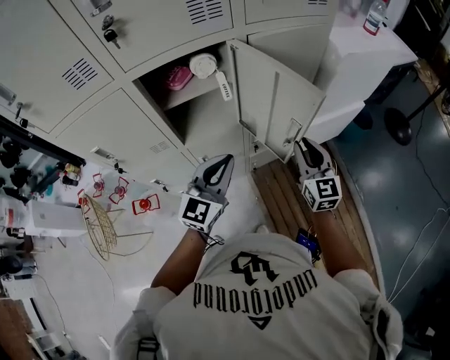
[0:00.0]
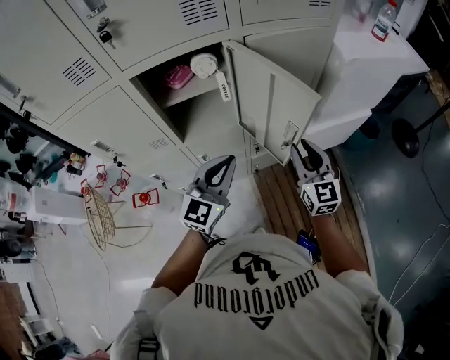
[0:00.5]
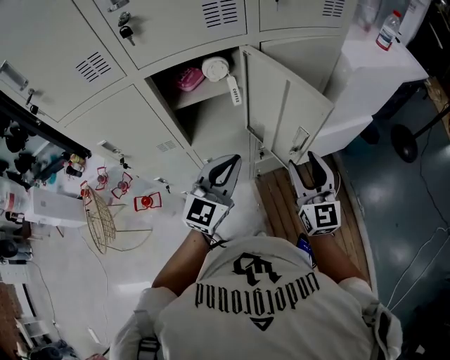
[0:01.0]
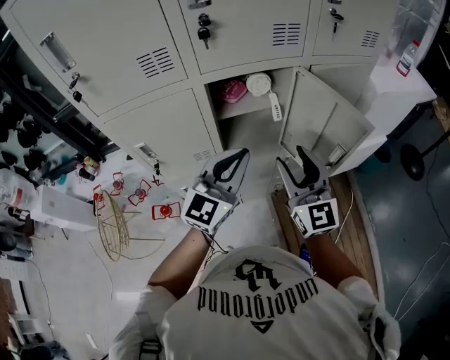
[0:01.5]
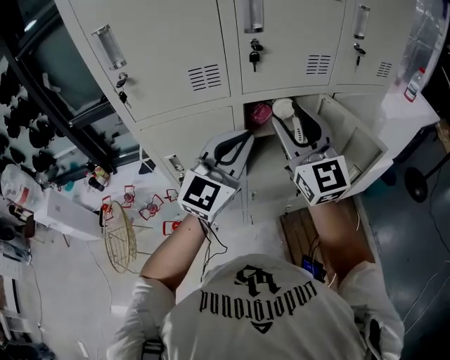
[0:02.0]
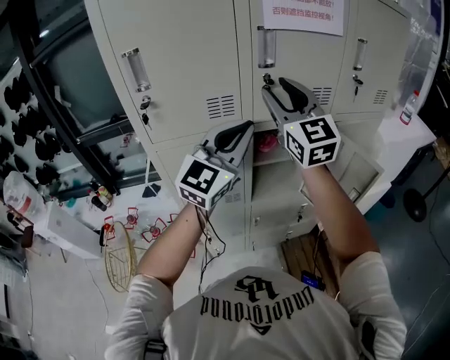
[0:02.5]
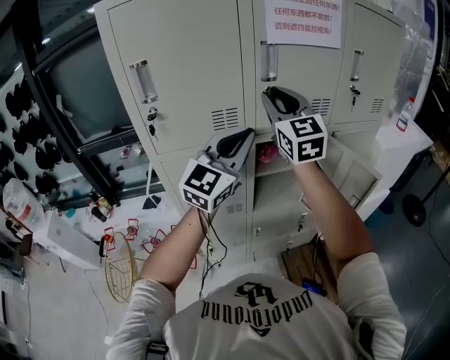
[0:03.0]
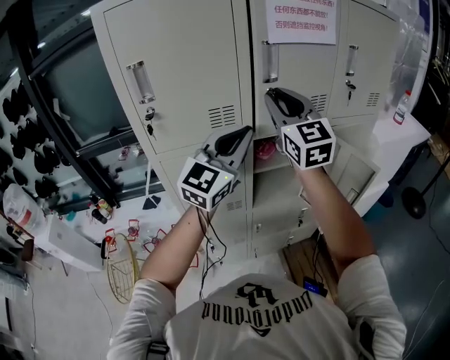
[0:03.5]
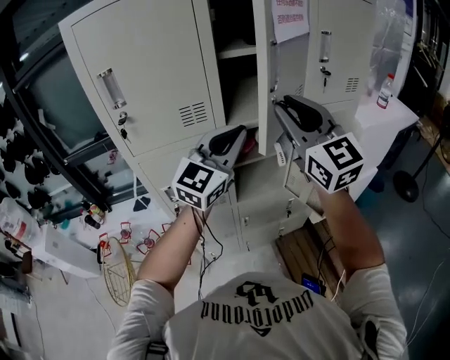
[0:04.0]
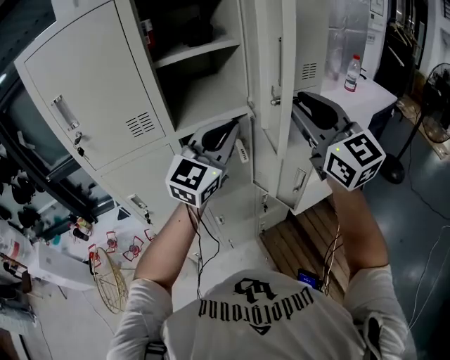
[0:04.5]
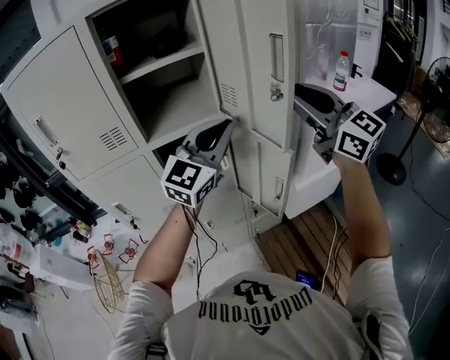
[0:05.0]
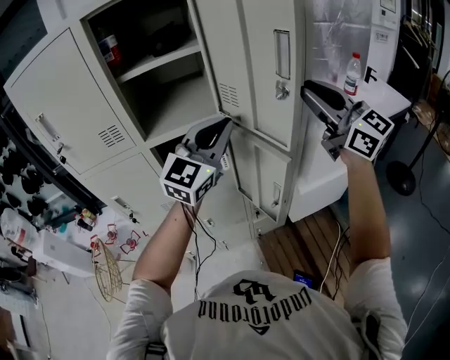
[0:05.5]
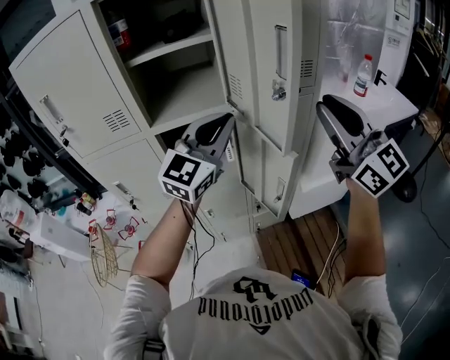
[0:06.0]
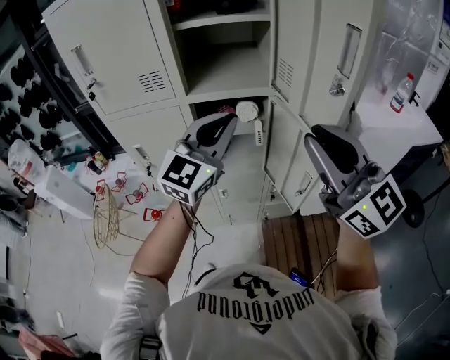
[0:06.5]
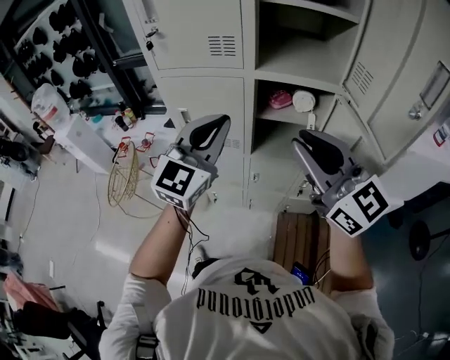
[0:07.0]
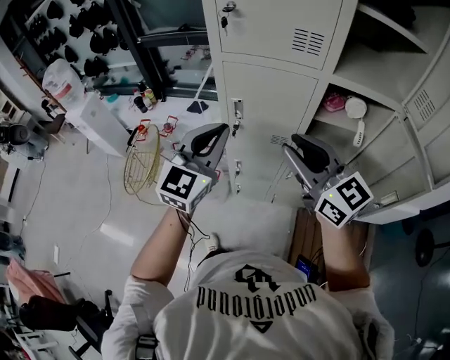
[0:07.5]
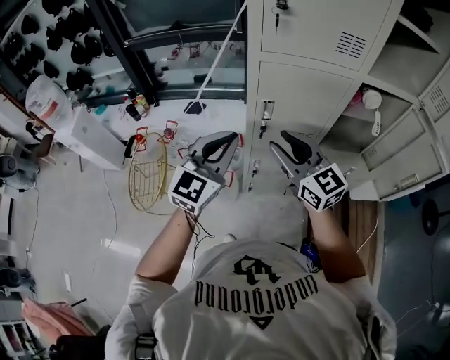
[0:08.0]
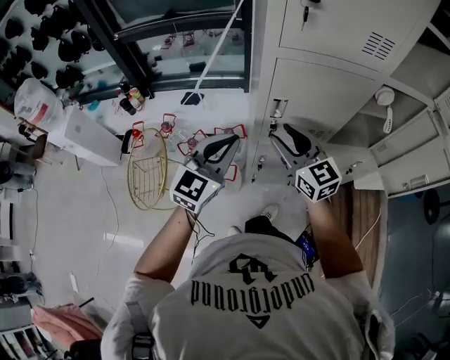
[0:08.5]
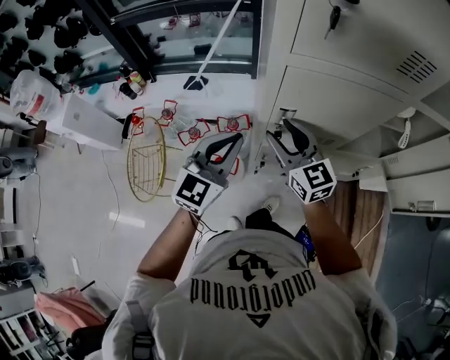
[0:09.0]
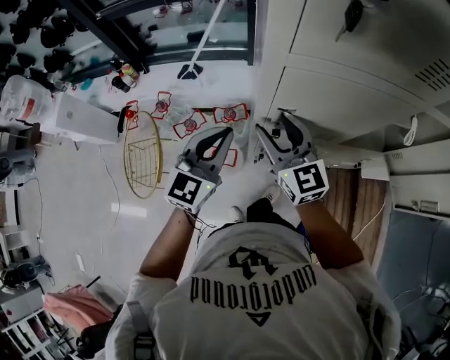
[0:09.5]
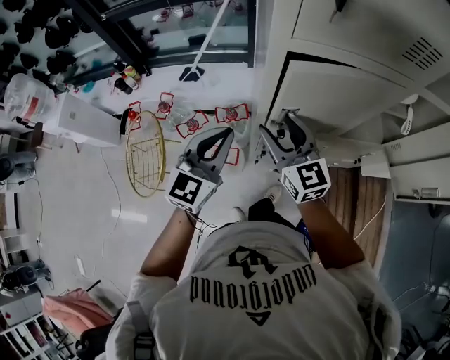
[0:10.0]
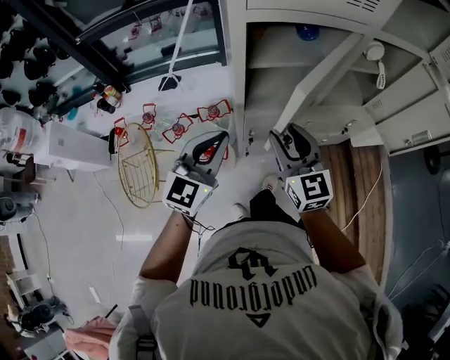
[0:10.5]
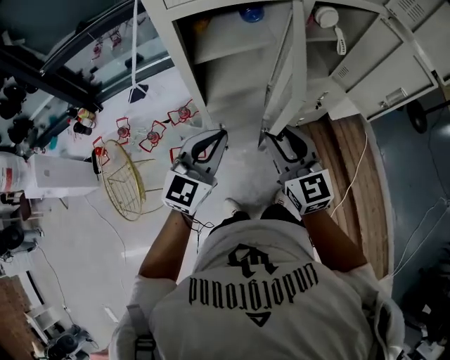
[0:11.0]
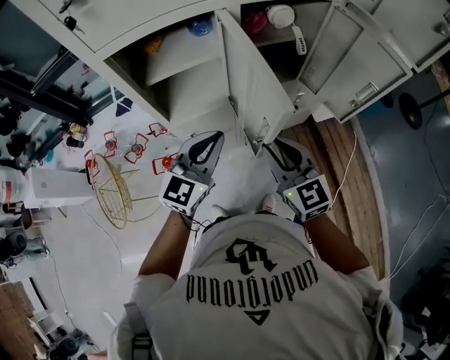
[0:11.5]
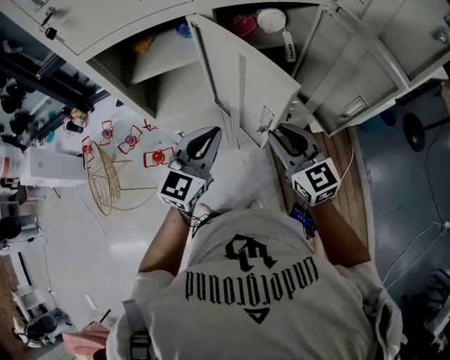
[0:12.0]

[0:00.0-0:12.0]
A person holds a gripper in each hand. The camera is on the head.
0:00.0 to 0:02.0: The right gripper heads to the left and upward, covering approximately 40 cm, rotates approximately 30 degrees, and opens up, while the left gripper goes about 25 cm upward and to the left.
0:02.0 to 0:04.0: Both grippers move upward, approximately 10 cm. The right gripper closes its fingers.
0:04.0 to 0:06.0: The two grippers go some 25 cm to the right.
0:06.0 to 0:08.0: The pair of grippers is taken approximately 60 cm. The right gripper turns by about 30 degrees; the left gripper changes its angle by some 20 degrees.
0:08.0 to 0:10.0: The left gripper moves downward and forward, about 15 cm; the right gripper travels forward and downward by about 15 cm.
0:10.0 to 0:12.0: Both grippers travel together to the right, about 40 cm. The right gripper closes.

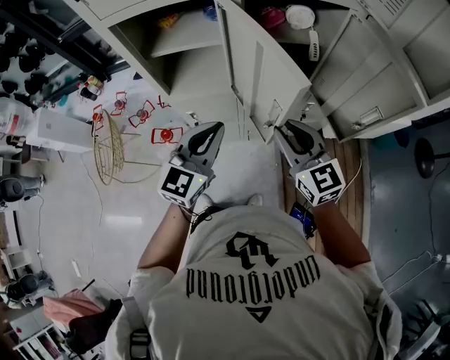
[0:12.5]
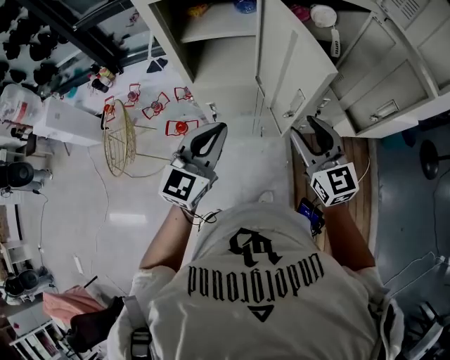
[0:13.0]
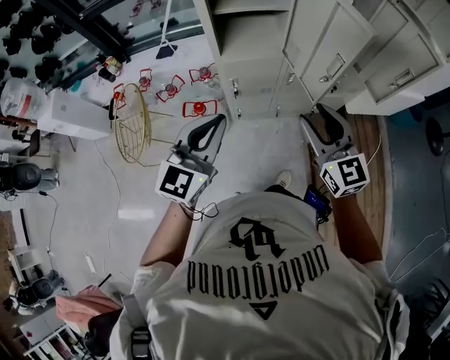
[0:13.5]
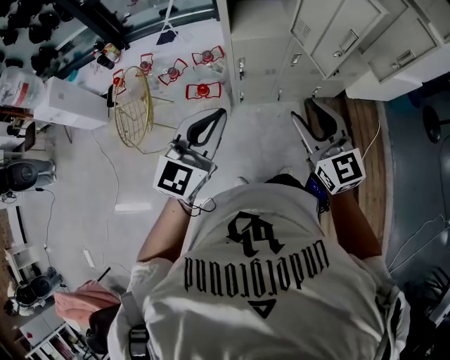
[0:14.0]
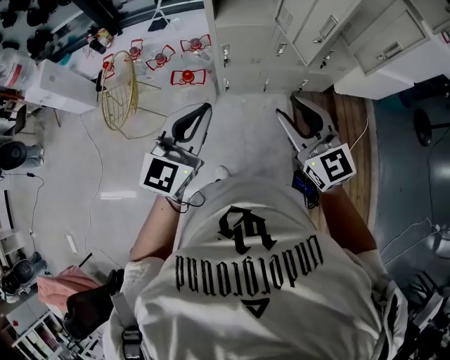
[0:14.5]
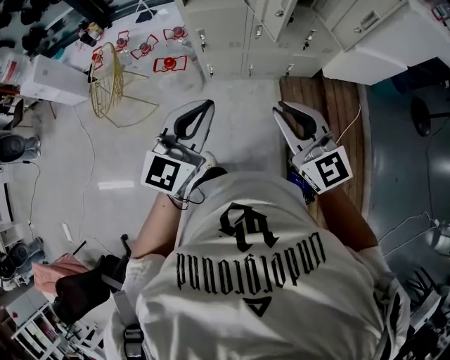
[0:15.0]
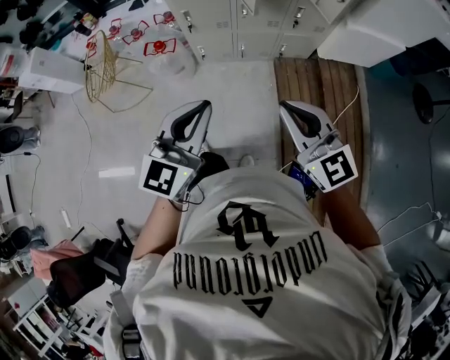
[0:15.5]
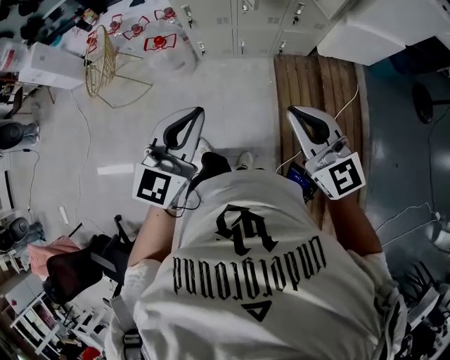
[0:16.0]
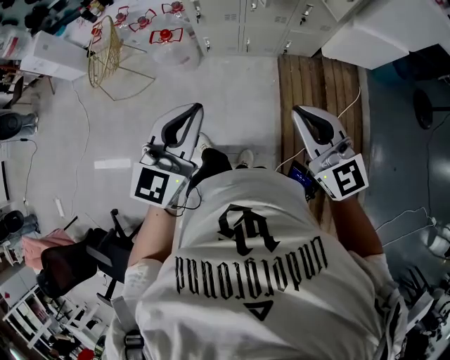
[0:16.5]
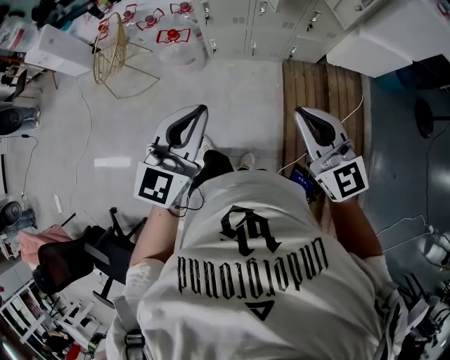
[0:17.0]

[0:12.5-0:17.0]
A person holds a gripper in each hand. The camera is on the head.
0:12.5 to 0:14.5: The two grippers go roughly 35 cm backward and to the left.
0:14.5 to 0:17.0: The grippers both shift backward and to the right by some 25 cm. The right gripper closes up.

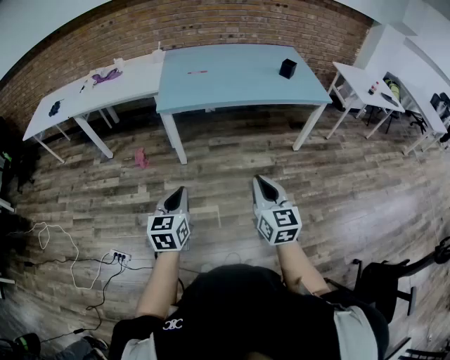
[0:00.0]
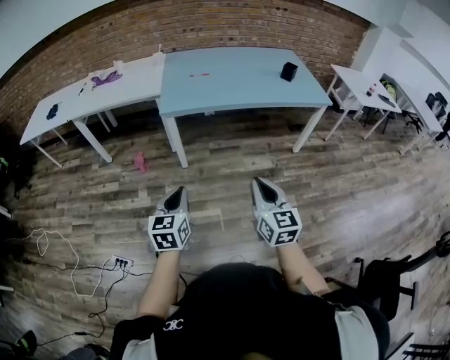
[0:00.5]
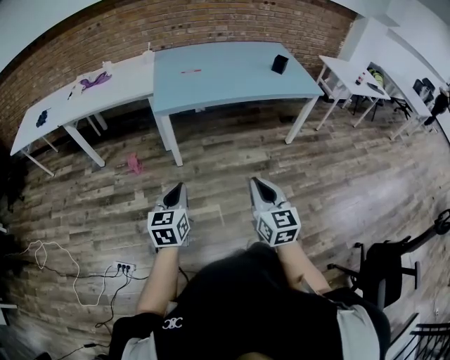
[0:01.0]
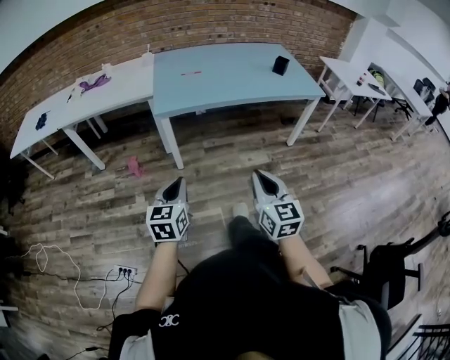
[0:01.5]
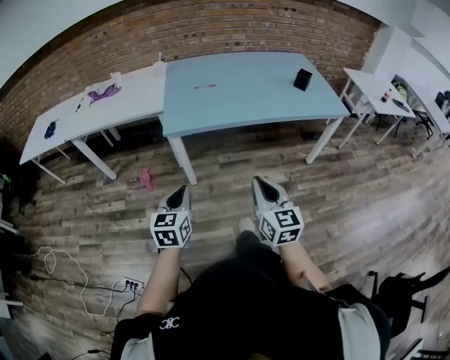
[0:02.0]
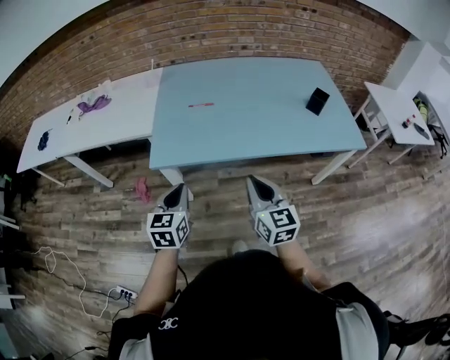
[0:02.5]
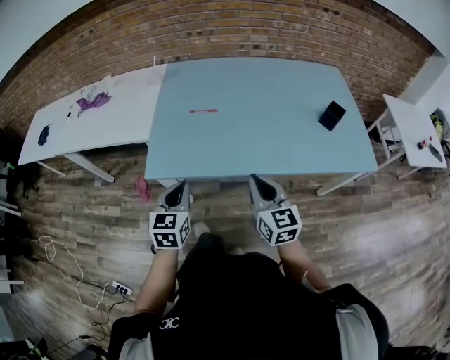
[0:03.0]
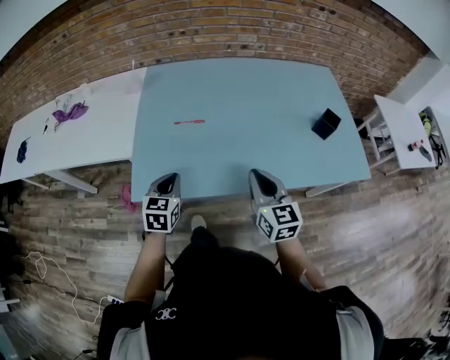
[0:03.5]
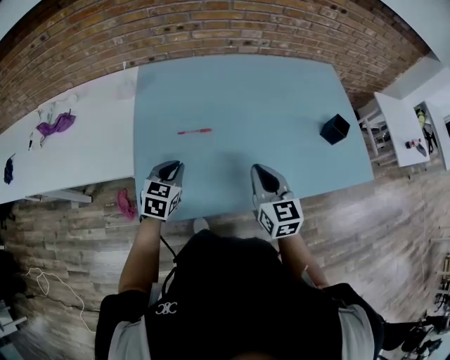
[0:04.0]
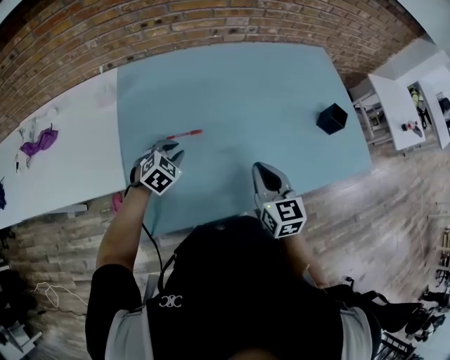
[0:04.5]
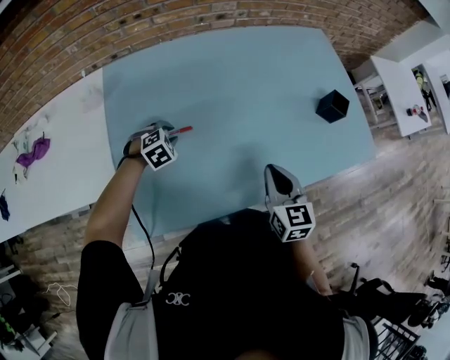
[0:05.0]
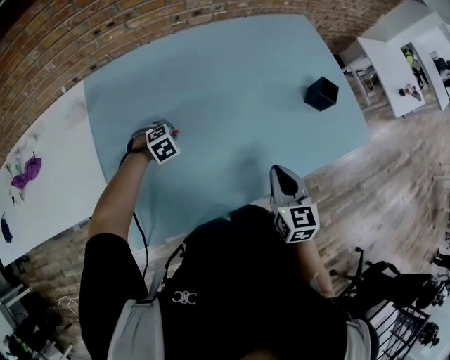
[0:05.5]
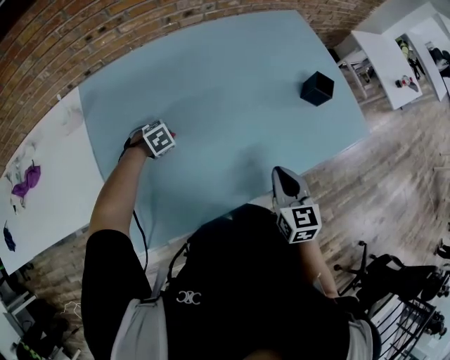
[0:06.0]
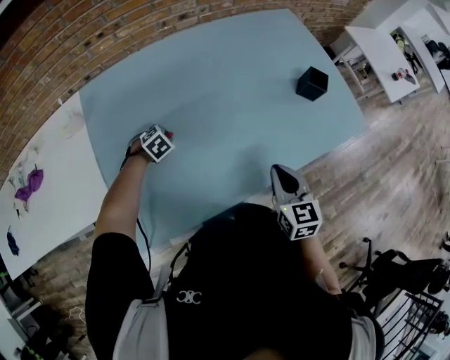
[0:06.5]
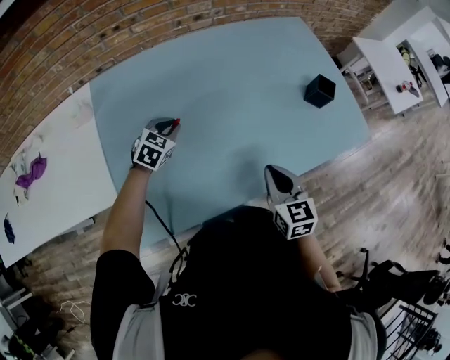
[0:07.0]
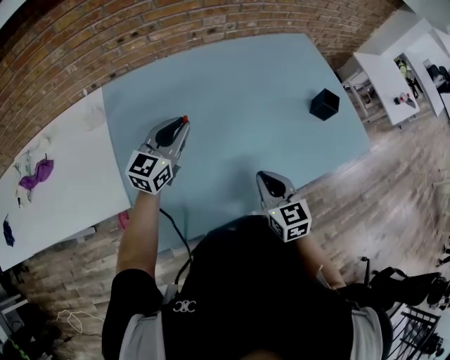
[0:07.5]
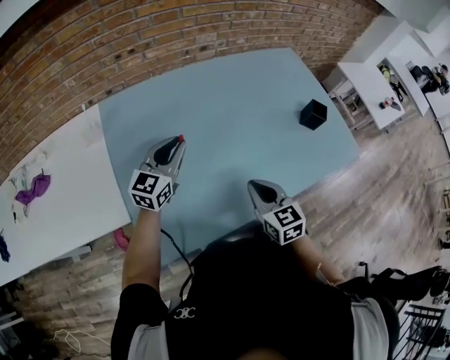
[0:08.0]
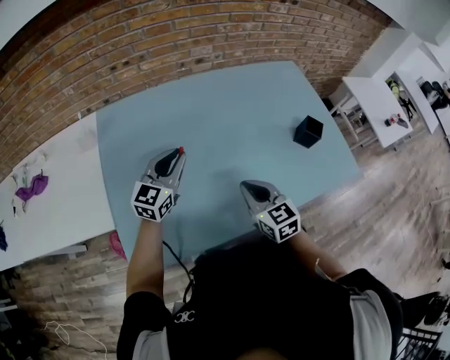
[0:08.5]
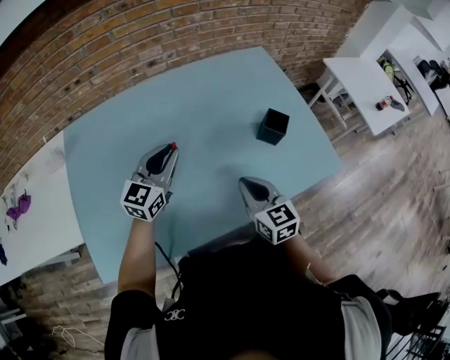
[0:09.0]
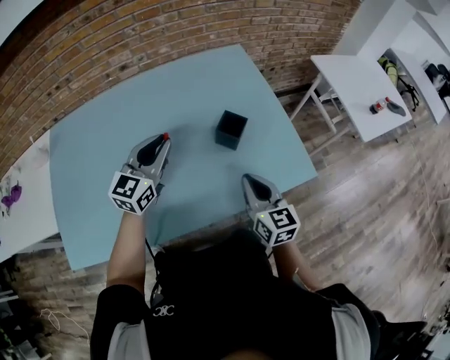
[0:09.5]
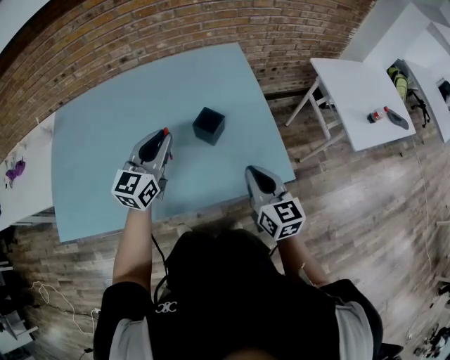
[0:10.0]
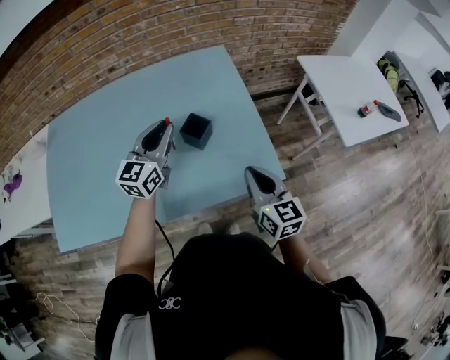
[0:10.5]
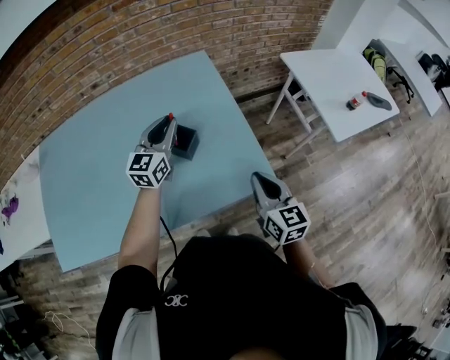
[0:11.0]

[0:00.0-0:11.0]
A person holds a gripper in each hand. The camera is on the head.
0:00.0 to 0:02.0: The left gripper shifts roughly 15 cm forward. Meanwhile the right gripper moves forward and to the left, some 15 cm.
0:02.0 to 0:03.5: The pair of grippers is taken forward, roughly 40 cm.
0:03.5 to 0:05.5: The left gripper shifts by some 35 cm, tilts its fingers approximately 40 degrees downward, and opens; the right gripper moves some 10 cm, and changes its angle by about 30 degrees.
0:05.5 to 0:07.5: The right gripper ends up about 10 cm from where it was. Meanwhile the left gripper is displaced upward by about 25 cm, and tips its fingers upward by roughly 70 degrees.
0:07.5 to 0:09.0: The left gripper travels to the right by roughly 20 cm; the right gripper travels to the right and forward by roughly 20 cm.
0:09.0 to 0:11.0: The grippers both shift to the right by some 35 cm.
